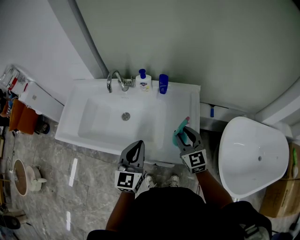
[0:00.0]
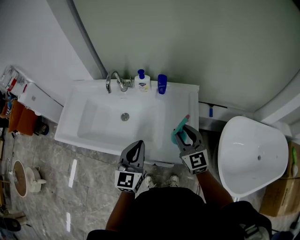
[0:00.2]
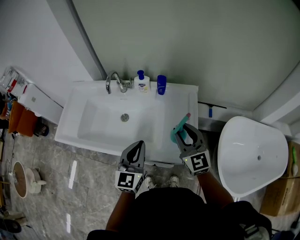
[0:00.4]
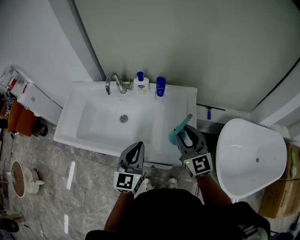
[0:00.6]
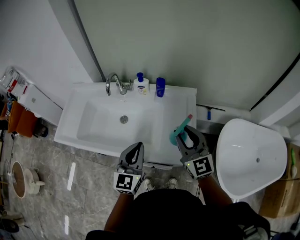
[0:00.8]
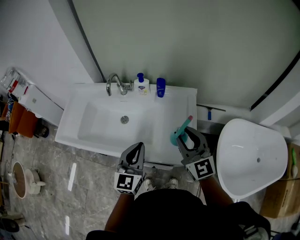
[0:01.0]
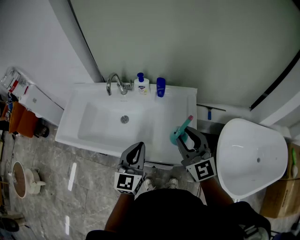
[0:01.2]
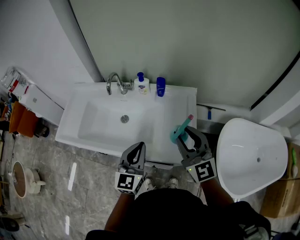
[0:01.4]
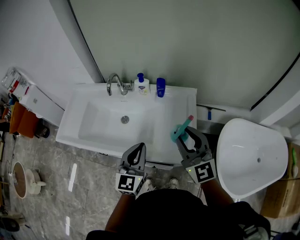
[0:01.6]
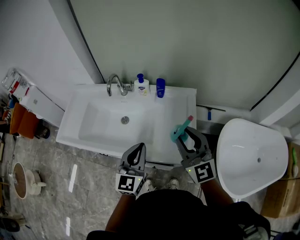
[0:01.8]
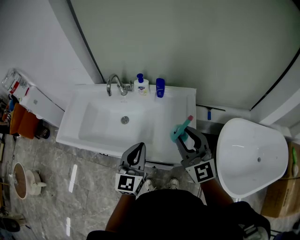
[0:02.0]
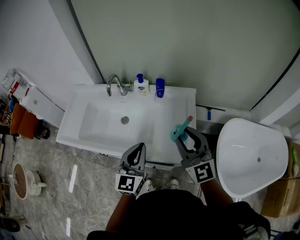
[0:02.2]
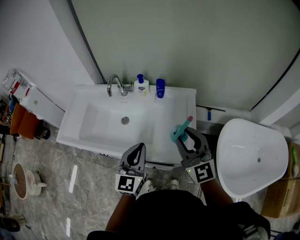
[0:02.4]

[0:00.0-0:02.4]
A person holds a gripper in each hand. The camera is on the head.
0:00.0 to 0:01.2: The right gripper goes some 15 cm upward.
0:01.2 to 0:02.4: The grippers make only small movements.

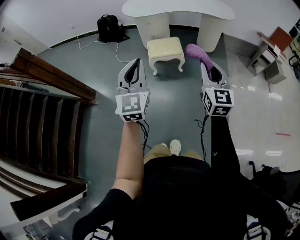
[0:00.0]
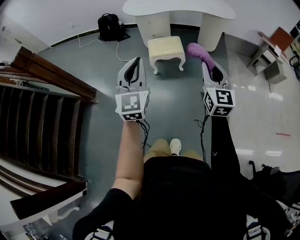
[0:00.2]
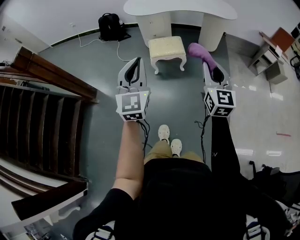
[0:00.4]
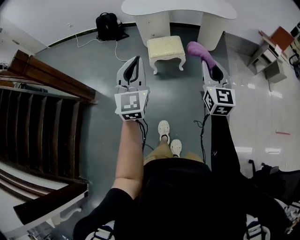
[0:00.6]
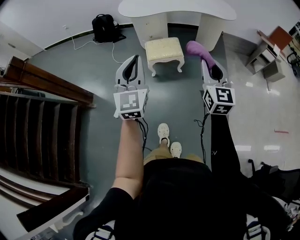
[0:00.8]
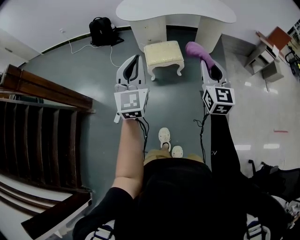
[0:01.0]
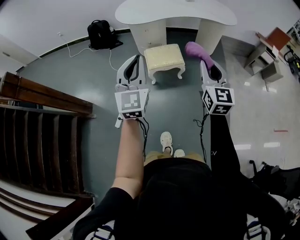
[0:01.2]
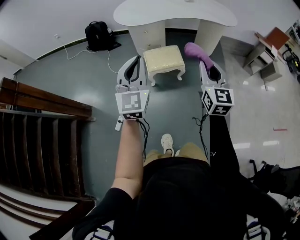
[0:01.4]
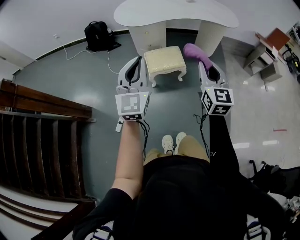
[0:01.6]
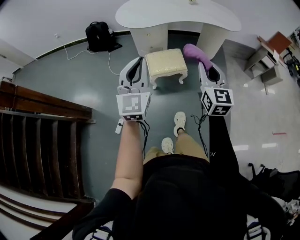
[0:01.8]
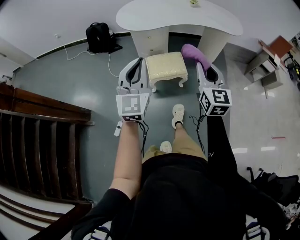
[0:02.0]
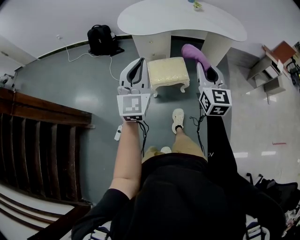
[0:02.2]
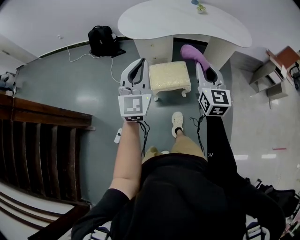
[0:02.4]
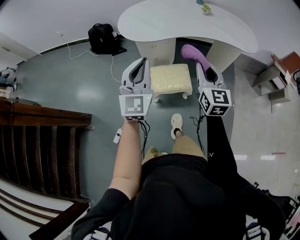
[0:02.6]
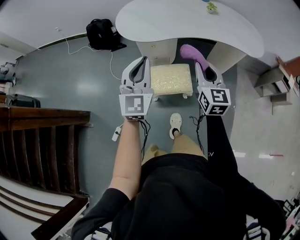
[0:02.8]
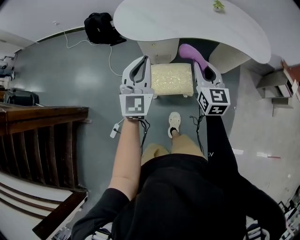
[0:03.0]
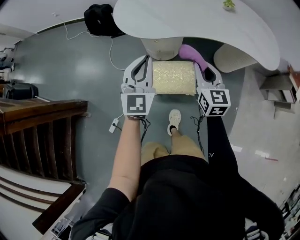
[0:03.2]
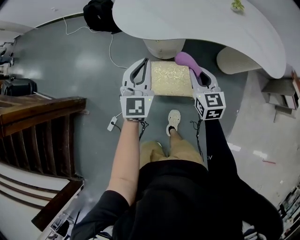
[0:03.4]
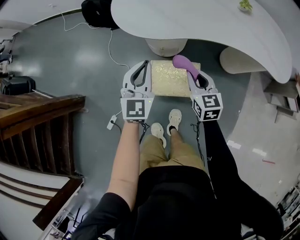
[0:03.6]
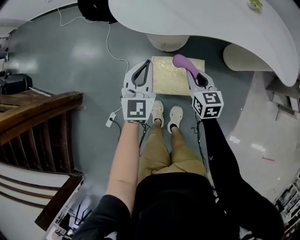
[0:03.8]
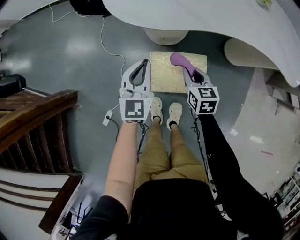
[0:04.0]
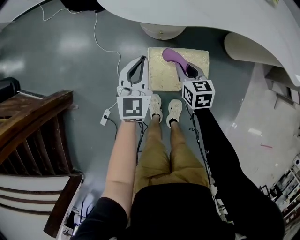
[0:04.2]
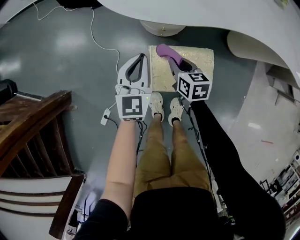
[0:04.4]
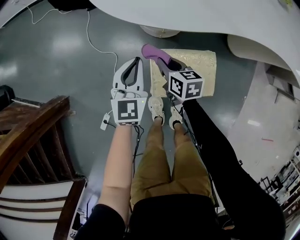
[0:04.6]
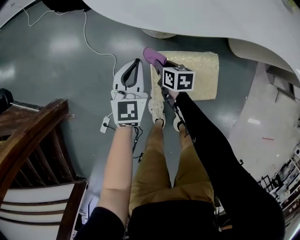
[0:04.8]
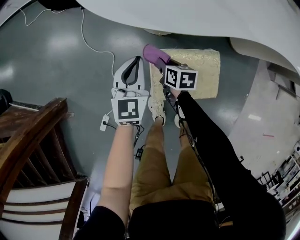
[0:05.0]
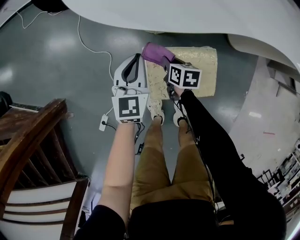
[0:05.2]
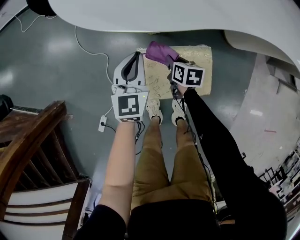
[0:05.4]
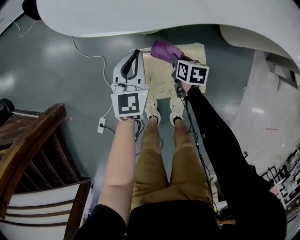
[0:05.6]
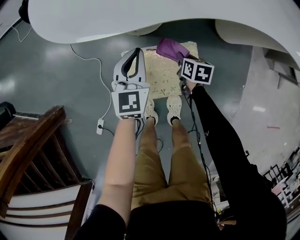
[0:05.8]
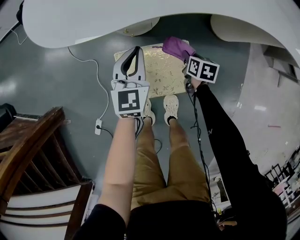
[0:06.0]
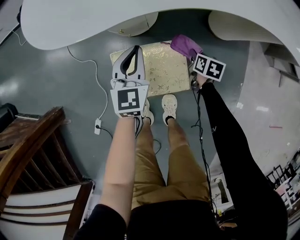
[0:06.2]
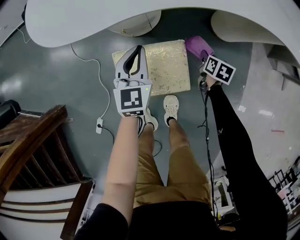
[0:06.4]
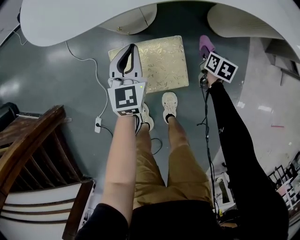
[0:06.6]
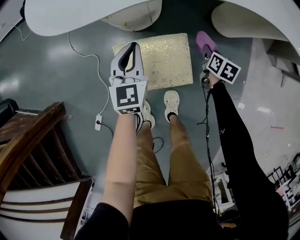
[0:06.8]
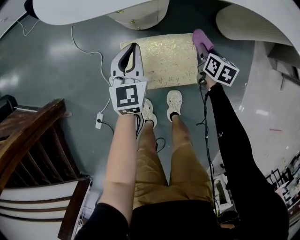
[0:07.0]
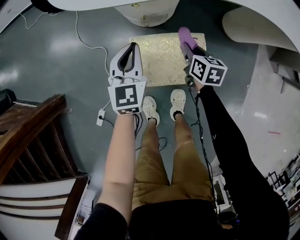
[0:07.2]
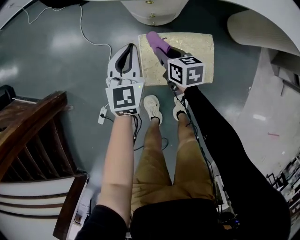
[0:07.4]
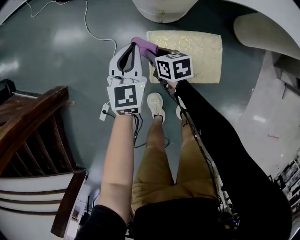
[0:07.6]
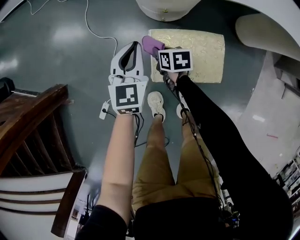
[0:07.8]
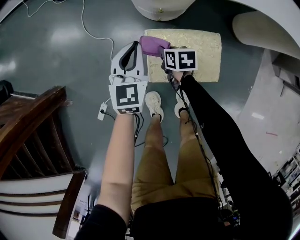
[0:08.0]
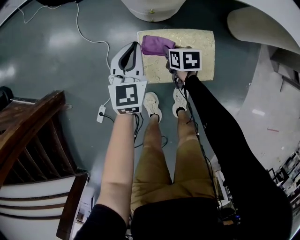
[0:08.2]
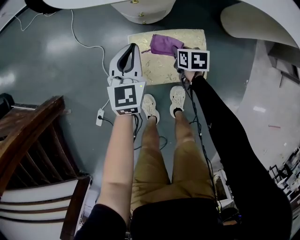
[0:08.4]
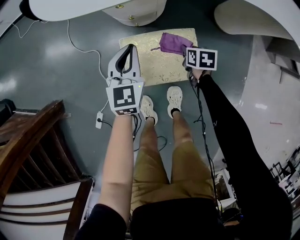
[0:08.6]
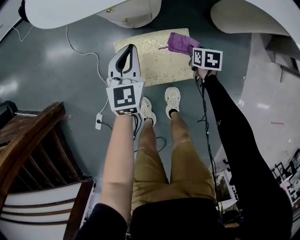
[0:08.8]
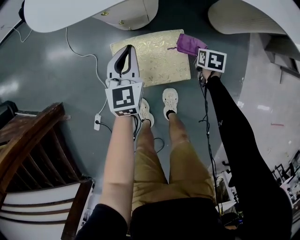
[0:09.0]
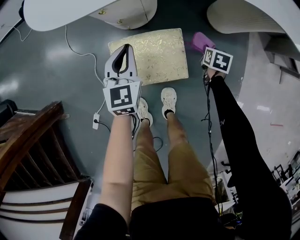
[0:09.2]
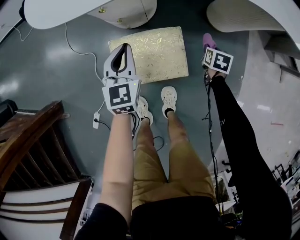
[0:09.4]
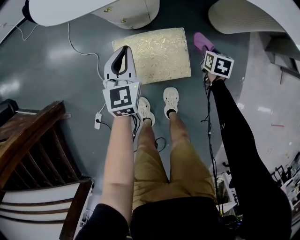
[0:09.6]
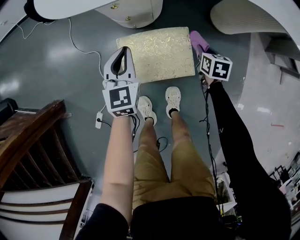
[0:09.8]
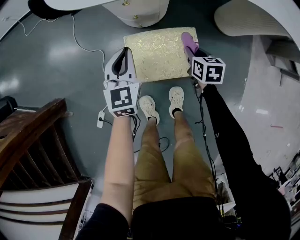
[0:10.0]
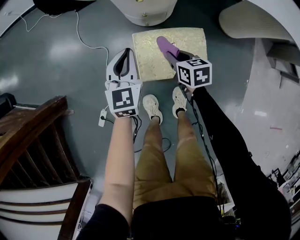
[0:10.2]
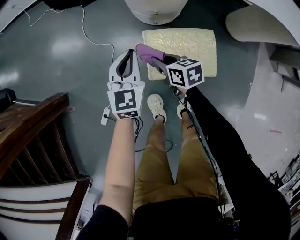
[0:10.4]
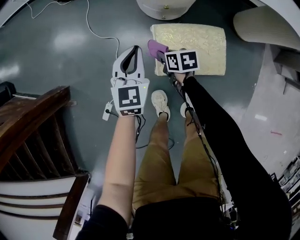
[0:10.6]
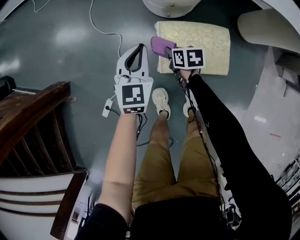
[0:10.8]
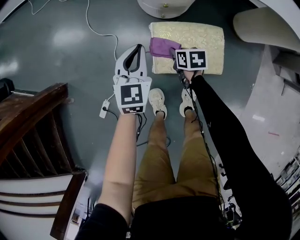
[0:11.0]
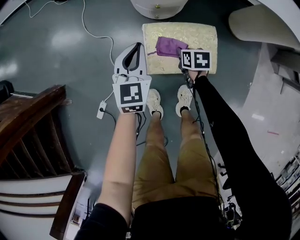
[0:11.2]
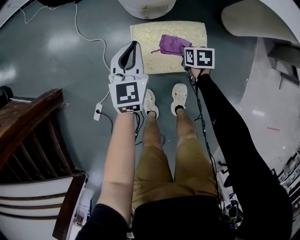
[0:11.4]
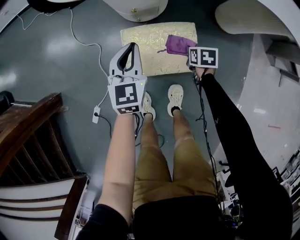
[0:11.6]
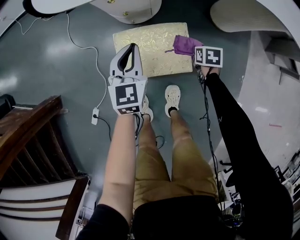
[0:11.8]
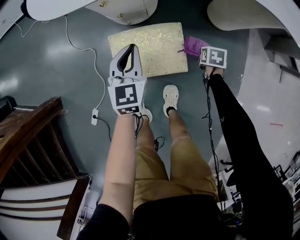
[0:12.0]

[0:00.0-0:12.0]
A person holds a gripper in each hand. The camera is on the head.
0:00.0 to 0:01.6: Both grippers travel together forward, approximately 25 cm.
0:01.6 to 0:03.0: Both grippers move forward, about 30 cm.
0:03.0 to 0:04.4: The right gripper goes some 40 cm downward and to the left, and rotates some 40 degrees; the left gripper travels downward and forward by about 35 cm, and rotates some 20 degrees.
0:04.4 to 0:06.0: The right gripper shifts about 25 cm to the right and downward, and turns by some 30 degrees. The left gripper is displaced to the right and downward by some 15 cm.
0:06.0 to 0:07.6: The left gripper ends up some 15 cm from where it was; the right gripper changes place by approximately 35 cm, and turns by about 30 degrees.
0:07.6 to 0:09.0: The right gripper changes place by approximately 40 cm, and swivels some 40 degrees. Meanwhile the left gripper moves approximately 15 cm.
0:09.0 to 0:10.4: The left gripper changes place by some 15 cm; the right gripper shifts by roughly 40 cm, and rotates about 40 degrees.
0:10.4 to 0:12.0: The left gripper shifts by about 20 cm. Meanwhile the right gripper ends up approximately 40 cm from where it was, and tilts its fingers about 40 degrees downward.

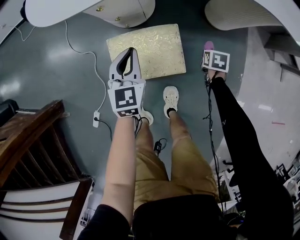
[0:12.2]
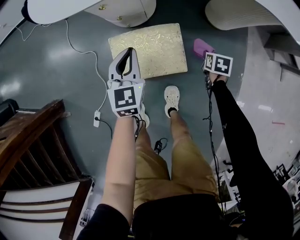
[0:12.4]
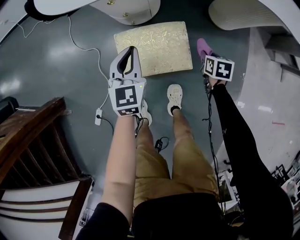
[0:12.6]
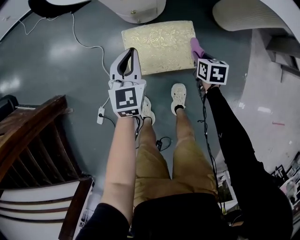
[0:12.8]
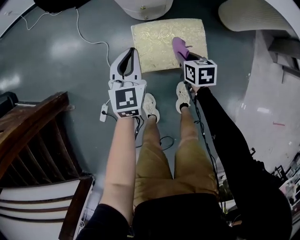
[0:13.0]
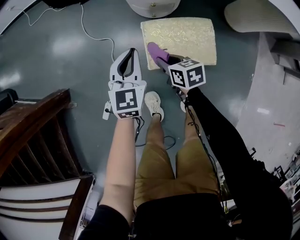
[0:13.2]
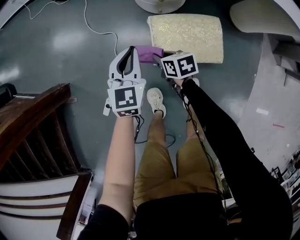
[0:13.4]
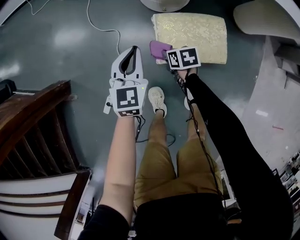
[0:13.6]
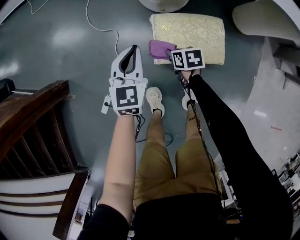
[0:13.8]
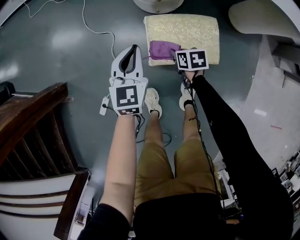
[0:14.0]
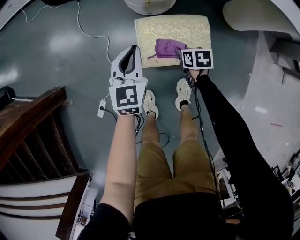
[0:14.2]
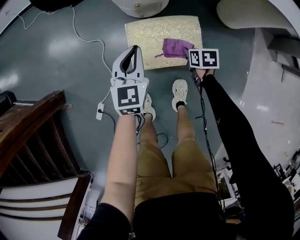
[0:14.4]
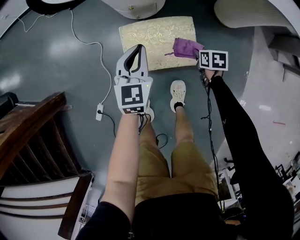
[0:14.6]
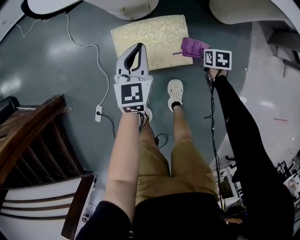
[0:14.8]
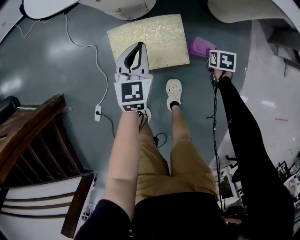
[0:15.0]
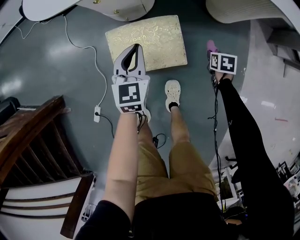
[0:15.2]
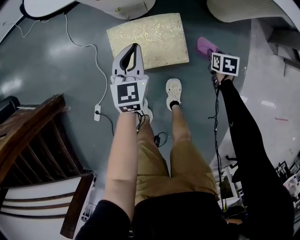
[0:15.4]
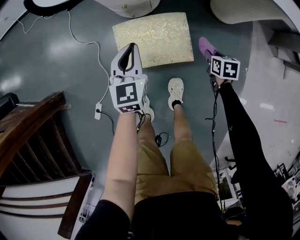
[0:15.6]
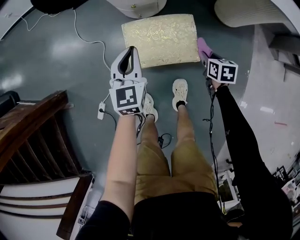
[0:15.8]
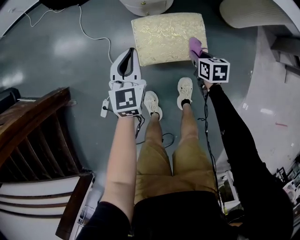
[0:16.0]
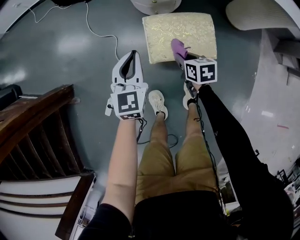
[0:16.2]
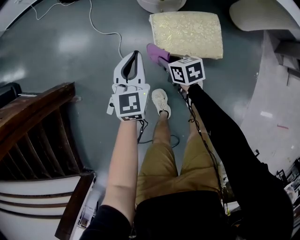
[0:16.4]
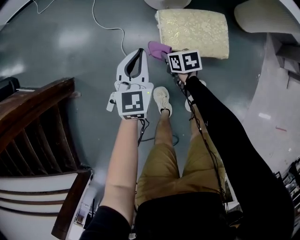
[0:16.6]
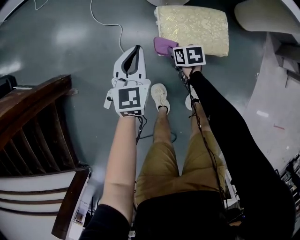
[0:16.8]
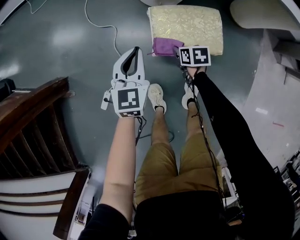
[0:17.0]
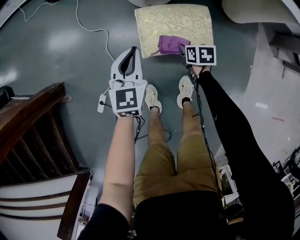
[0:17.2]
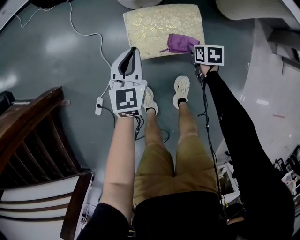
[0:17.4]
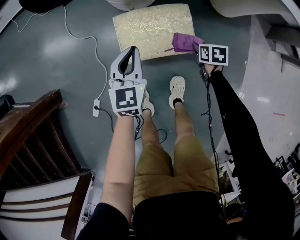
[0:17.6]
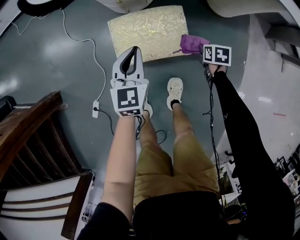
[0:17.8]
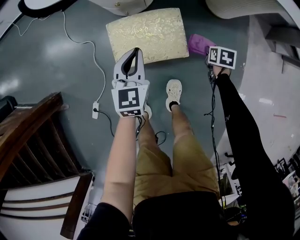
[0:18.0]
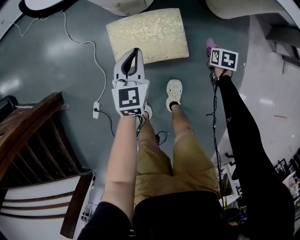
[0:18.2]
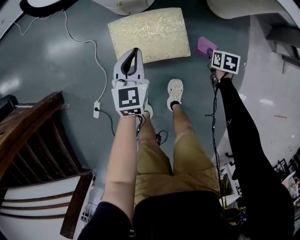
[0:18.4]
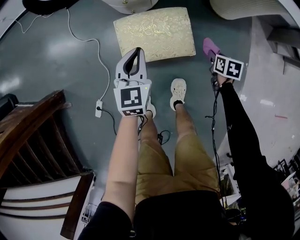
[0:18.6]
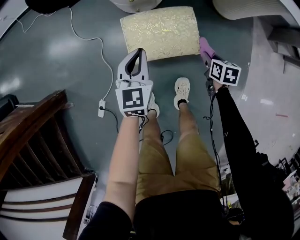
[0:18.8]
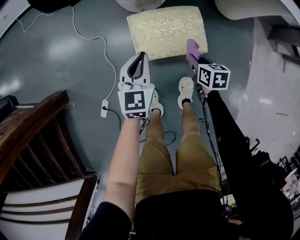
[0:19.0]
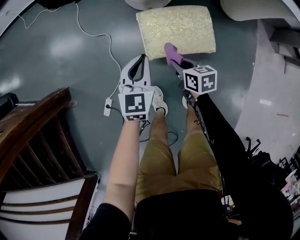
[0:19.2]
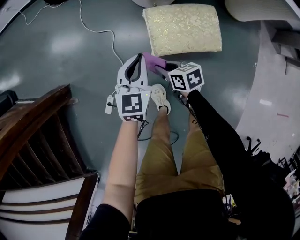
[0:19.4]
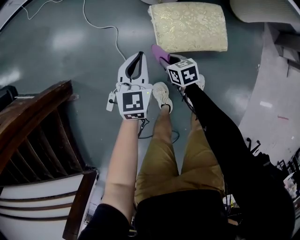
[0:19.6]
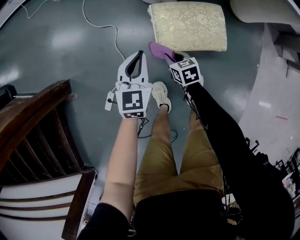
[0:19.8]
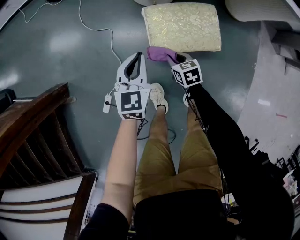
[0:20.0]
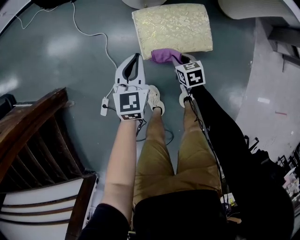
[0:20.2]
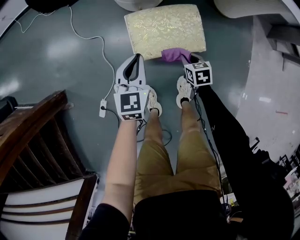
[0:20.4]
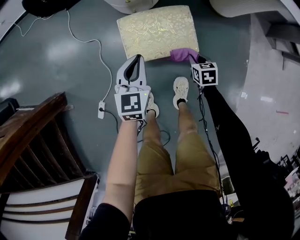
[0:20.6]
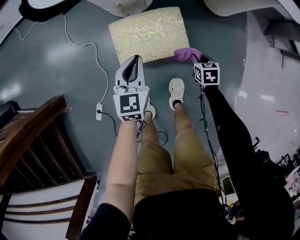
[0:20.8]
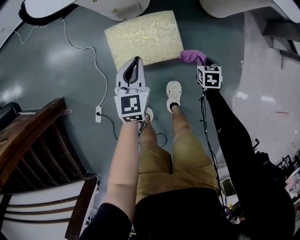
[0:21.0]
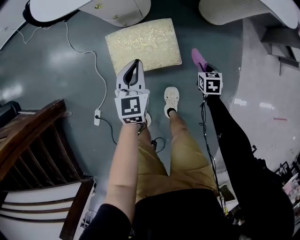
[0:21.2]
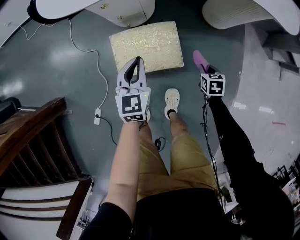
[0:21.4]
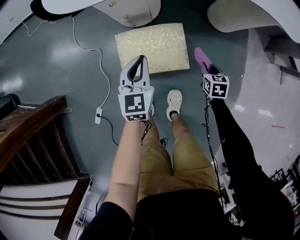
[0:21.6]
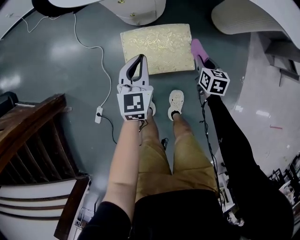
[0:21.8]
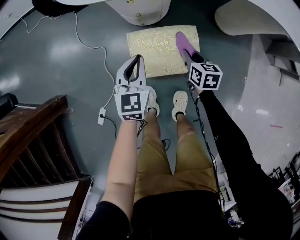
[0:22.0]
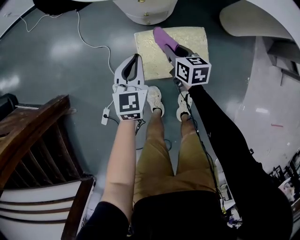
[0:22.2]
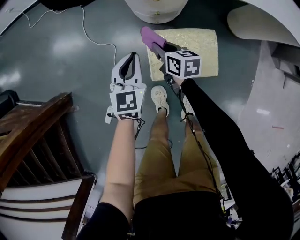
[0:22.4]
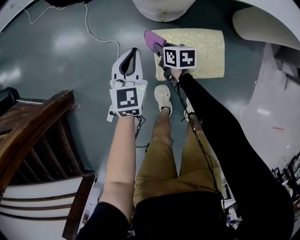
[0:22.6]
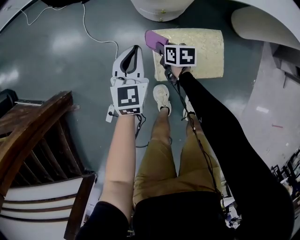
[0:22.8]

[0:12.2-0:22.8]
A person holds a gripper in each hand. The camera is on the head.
0:12.2 to 0:13.8: The right gripper moves roughly 10 cm upward and comes back, and turns by about 30 degrees. The left gripper changes place by roughly 20 cm.
0:13.8 to 0:15.2: The left gripper changes place by approximately 25 cm; the right gripper changes place by roughly 40 cm, and turns by about 30 degrees.
0:15.2 to 0:16.8: The left gripper ends up approximately 25 cm from where it was. Meanwhile the right gripper goes upward and returns, some 10 cm each way, and changes its angle by some 20 degrees.
0:16.8 to 0:18.2: The left gripper travels to the right by about 20 cm. Meanwhile the right gripper shifts roughly 40 cm to the right, and changes its angle by roughly 30 degrees.
0:18.2 to 0:19.8: The left gripper goes approximately 20 cm to the left; the right gripper heads to the left, covering some 40 cm, and changes its angle by about 30 degrees.
0:19.8 to 0:21.2: The right gripper is displaced to the right by approximately 40 cm, and changes its angle by about 30 degrees; the left gripper shifts some 25 cm to the right.
0:21.2 to 0:22.8: The right gripper heads to the left and forward, covering about 40 cm, and rotates roughly 30 degrees. Meanwhile the left gripper travels to the left and forward by approximately 25 cm.
